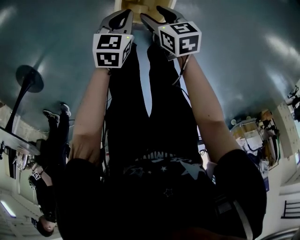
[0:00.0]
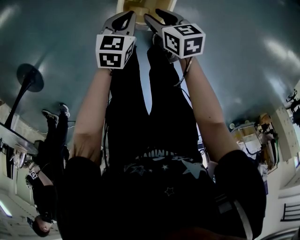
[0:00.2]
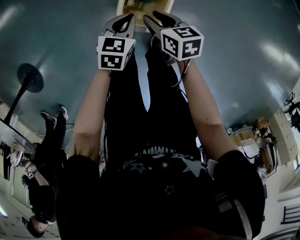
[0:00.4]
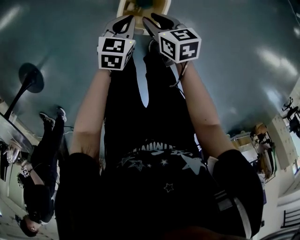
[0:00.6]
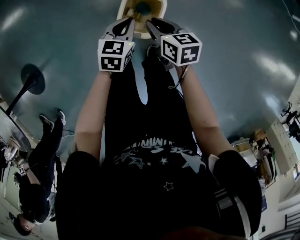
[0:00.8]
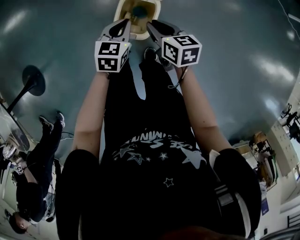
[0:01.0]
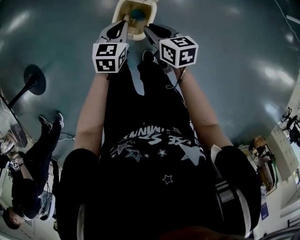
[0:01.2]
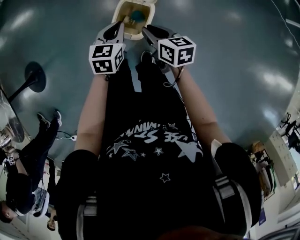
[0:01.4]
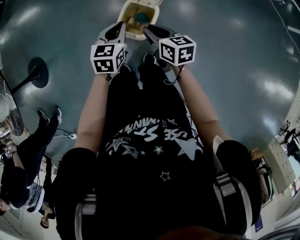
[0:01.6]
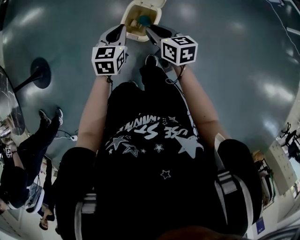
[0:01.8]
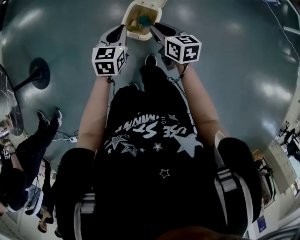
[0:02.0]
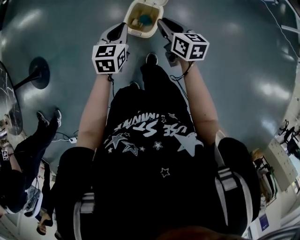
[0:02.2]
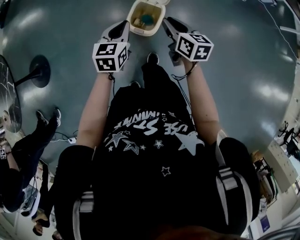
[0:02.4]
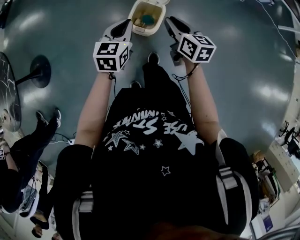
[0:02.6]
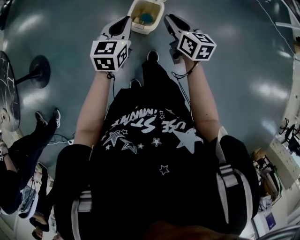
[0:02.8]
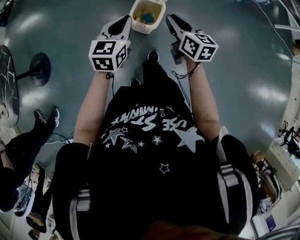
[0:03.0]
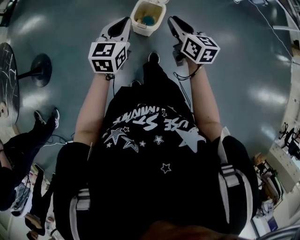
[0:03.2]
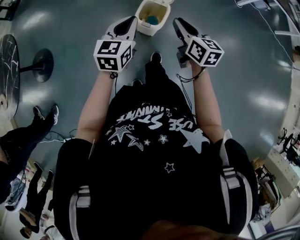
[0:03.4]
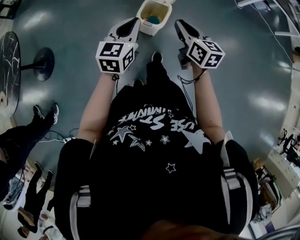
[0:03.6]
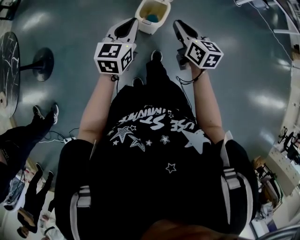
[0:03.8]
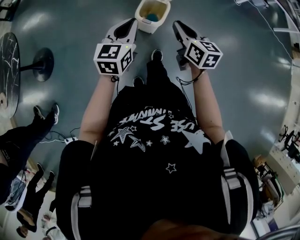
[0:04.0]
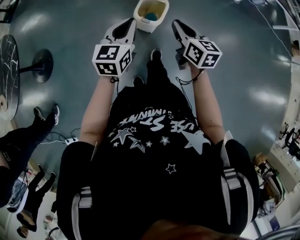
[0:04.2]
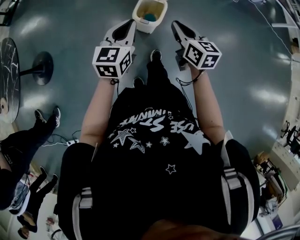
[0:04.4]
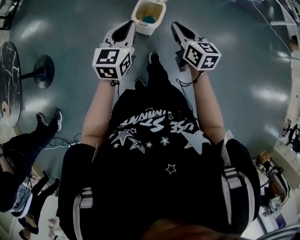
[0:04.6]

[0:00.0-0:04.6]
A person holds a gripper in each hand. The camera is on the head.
0:00.0 to 0:01.6: Both grippers move upward, about 20 cm. The right gripper closes its fingers. Meanwhile the left gripper swivels some 20 degrees.
0:01.6 to 0:03.0: The right gripper shifts about 15 cm upward and backward. The left gripper shifts approximately 20 cm backward, upward and to the left.
0:03.0 to 0:04.6: Both grippers travel together backward, about 10 cm.

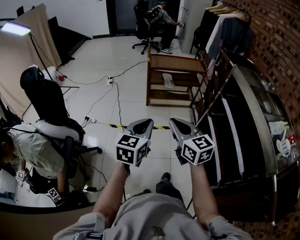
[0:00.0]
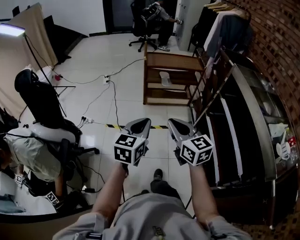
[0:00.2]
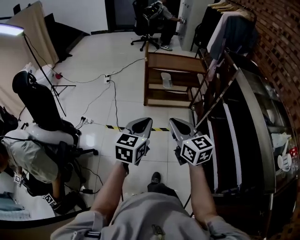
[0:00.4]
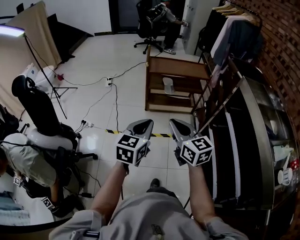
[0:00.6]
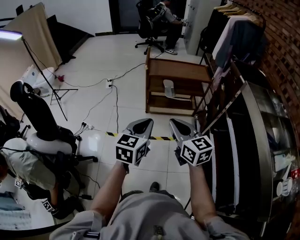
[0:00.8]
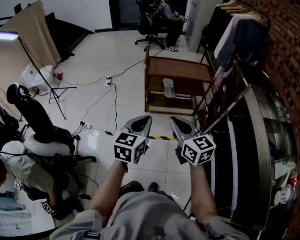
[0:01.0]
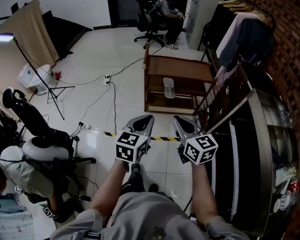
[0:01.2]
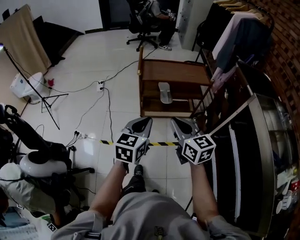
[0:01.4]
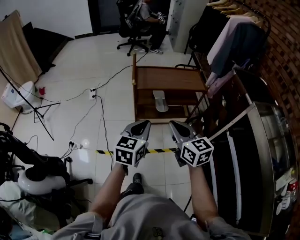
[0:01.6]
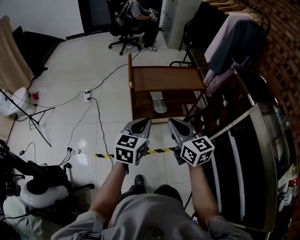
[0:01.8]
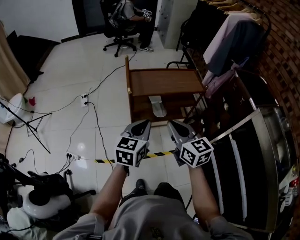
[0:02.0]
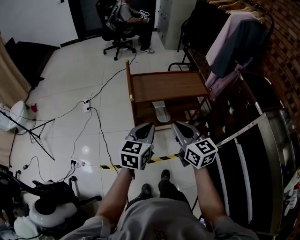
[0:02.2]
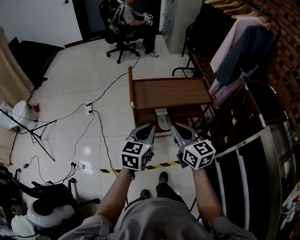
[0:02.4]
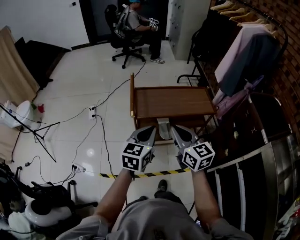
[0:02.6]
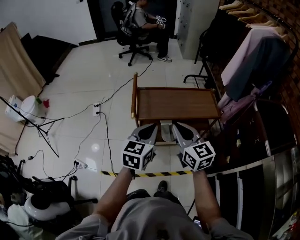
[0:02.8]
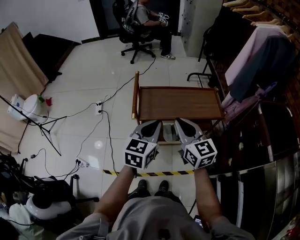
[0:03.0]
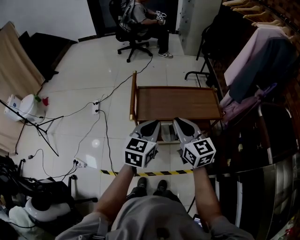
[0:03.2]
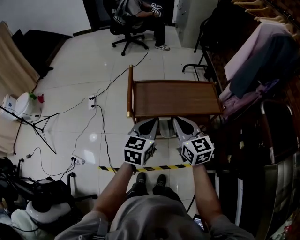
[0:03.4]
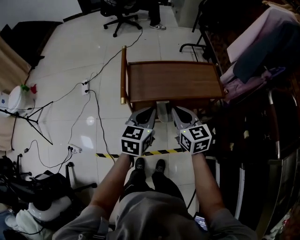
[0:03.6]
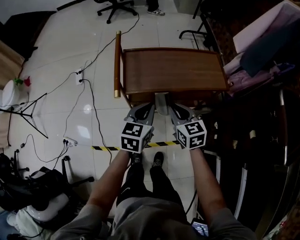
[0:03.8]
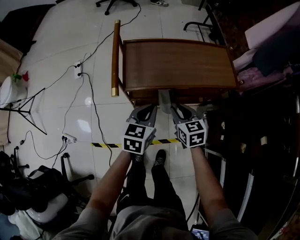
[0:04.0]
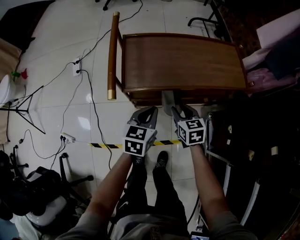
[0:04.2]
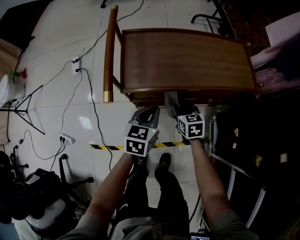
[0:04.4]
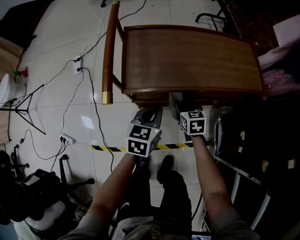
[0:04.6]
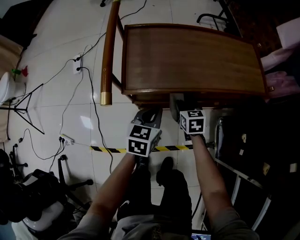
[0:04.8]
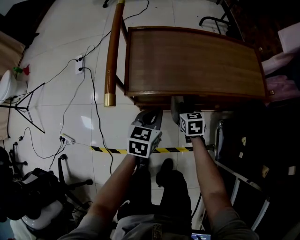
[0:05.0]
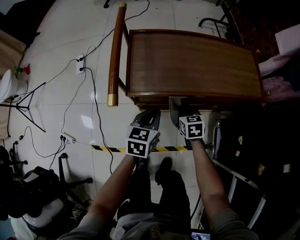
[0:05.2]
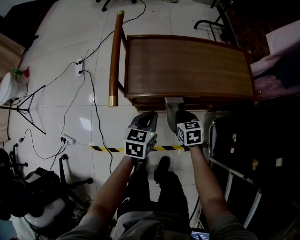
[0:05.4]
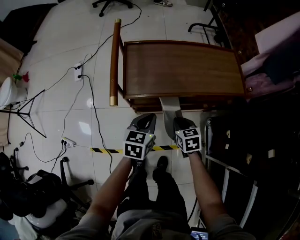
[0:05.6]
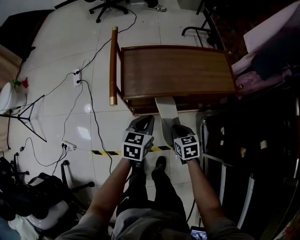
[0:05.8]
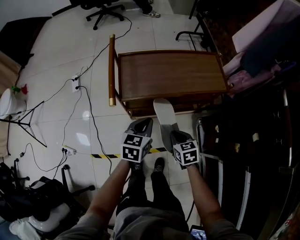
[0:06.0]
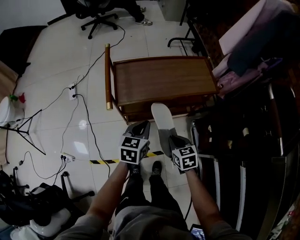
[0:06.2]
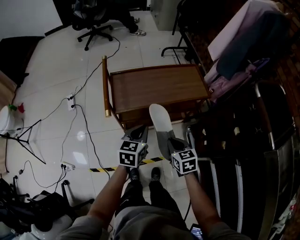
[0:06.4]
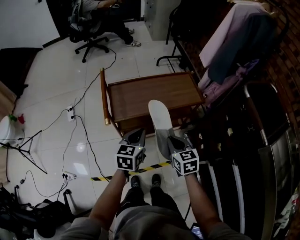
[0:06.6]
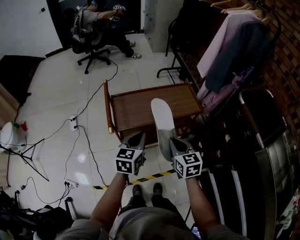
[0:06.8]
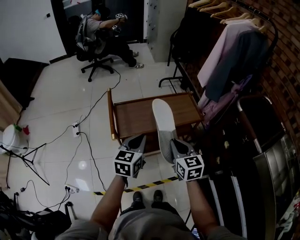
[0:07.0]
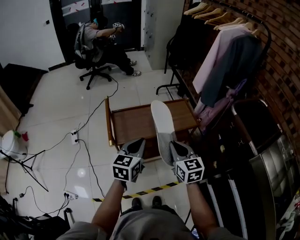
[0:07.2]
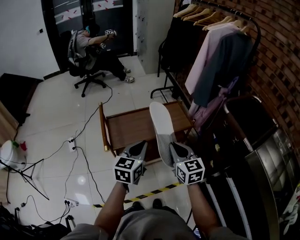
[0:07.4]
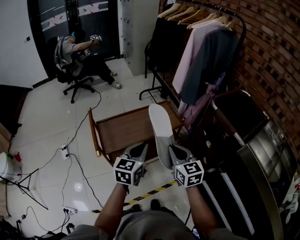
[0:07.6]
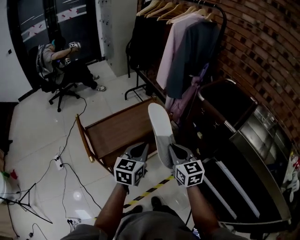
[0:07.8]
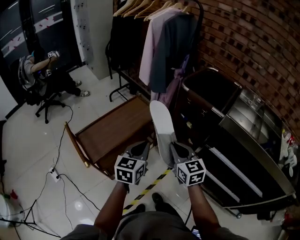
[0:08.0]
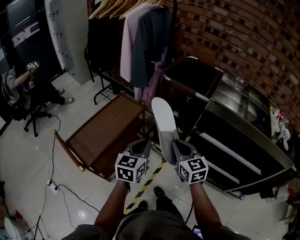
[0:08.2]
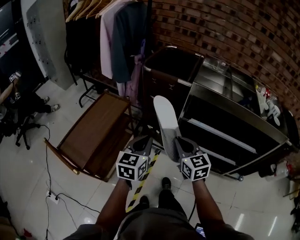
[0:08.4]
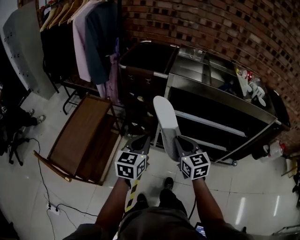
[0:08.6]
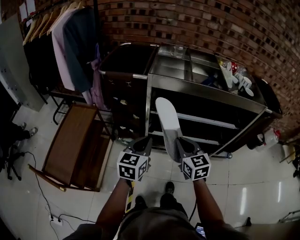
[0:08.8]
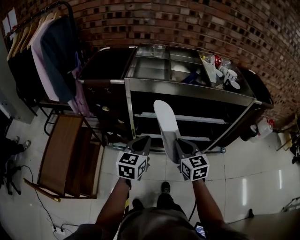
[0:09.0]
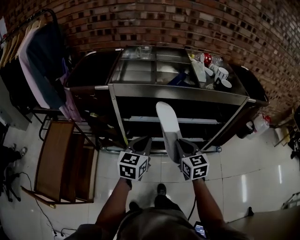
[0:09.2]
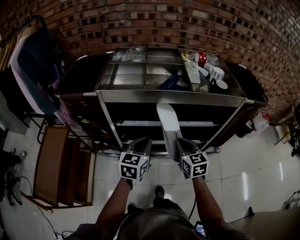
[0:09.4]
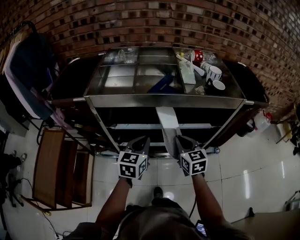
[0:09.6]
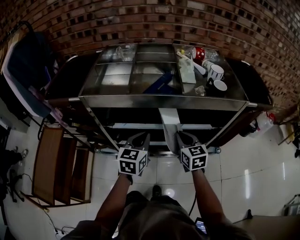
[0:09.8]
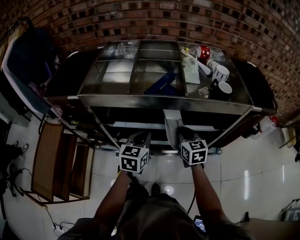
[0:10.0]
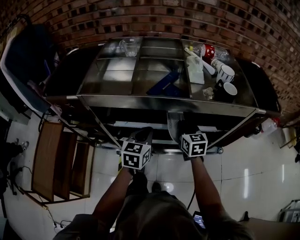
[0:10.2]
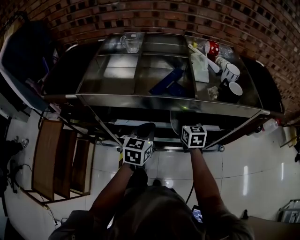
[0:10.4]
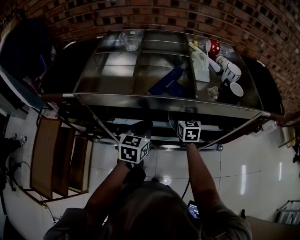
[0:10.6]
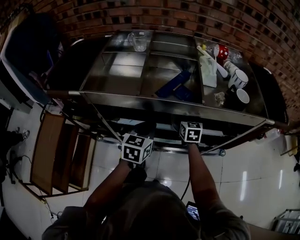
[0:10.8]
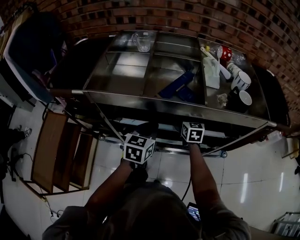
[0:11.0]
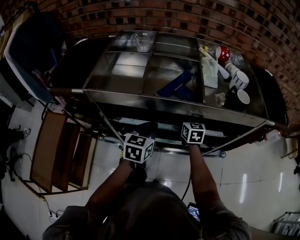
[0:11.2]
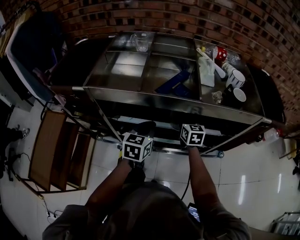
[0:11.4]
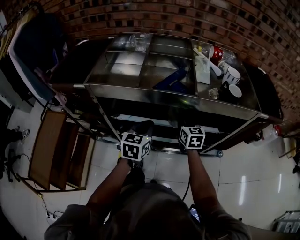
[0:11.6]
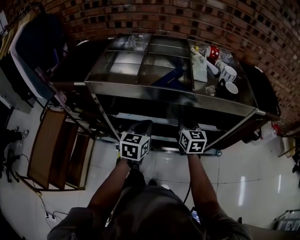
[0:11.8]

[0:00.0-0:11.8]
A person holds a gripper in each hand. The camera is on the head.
0:00.0 to 0:01.4: The grippers both shift forward by roughly 35 cm.
0:01.4 to 0:03.0: Both grippers move forward, roughly 35 cm.
0:03.0 to 0:04.4: Both grippers travel together downward, about 40 cm. The left gripper turns by roughly 20 degrees. The right gripper angles its fingers downward, by about 40 degrees, and opens up.
0:04.4 to 0:06.0: The right gripper travels backward and upward by about 20 cm, and closes up; the left gripper heads upward and backward, covering approximately 15 cm.
0:06.0 to 0:07.4: Both grippers travel together upward, approximately 25 cm. The right gripper tilts its fingers some 30 degrees upward, while the left gripper rotates about 20 degrees.
0:07.4 to 0:08.8: The left gripper changes place by some 35 cm, and turns by about 60 degrees. Meanwhile the right gripper changes place by approximately 40 cm, and swivels some 60 degrees.
0:08.8 to 0:10.4: The two grippers go some 35 cm forward and to the right.
0:10.4 to 0:11.8: The right gripper travels backward by approximately 5 cm.

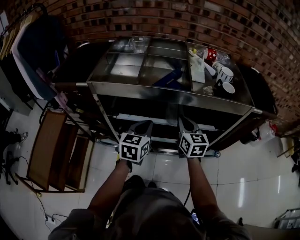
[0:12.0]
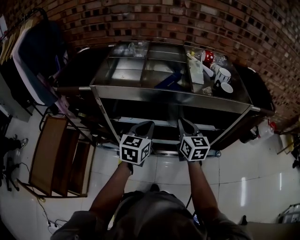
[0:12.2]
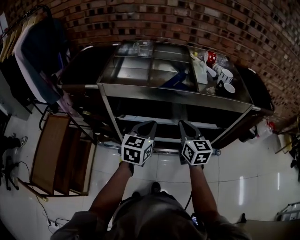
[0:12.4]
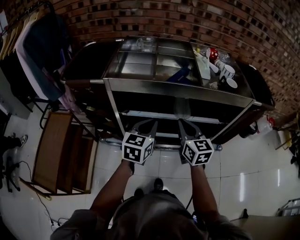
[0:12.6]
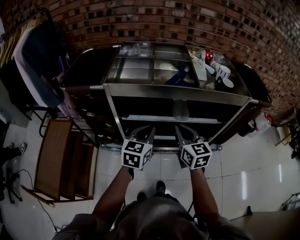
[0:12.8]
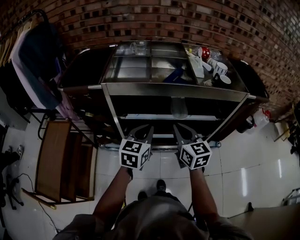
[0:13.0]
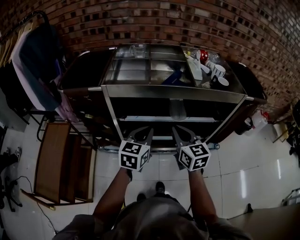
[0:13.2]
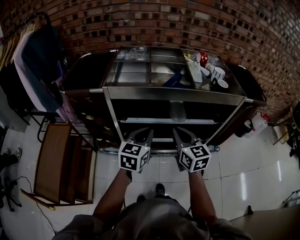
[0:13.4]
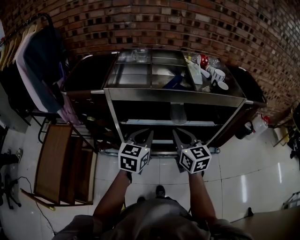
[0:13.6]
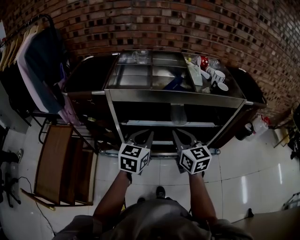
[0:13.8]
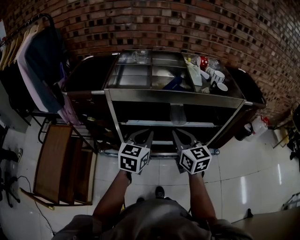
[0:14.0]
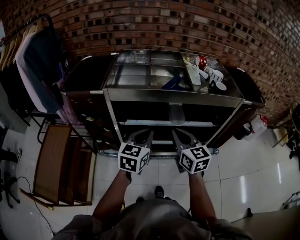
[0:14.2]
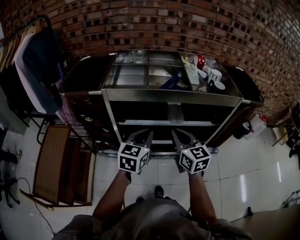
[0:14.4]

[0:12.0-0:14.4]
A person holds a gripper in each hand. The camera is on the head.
0:12.0 to 0:13.2: The right gripper shifts some 15 cm backward, to the left and upward, while the left gripper shifts approximately 10 cm backward and to the left.
0:13.2 to 0:14.4: There are only small adjustments of the grippers.

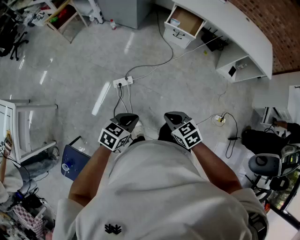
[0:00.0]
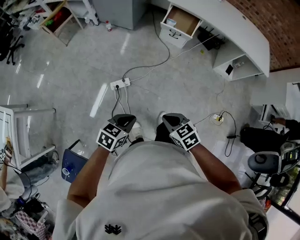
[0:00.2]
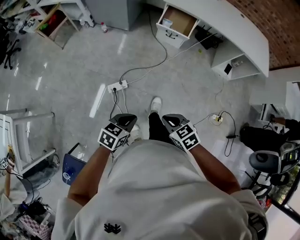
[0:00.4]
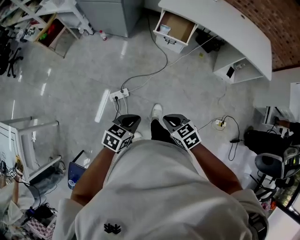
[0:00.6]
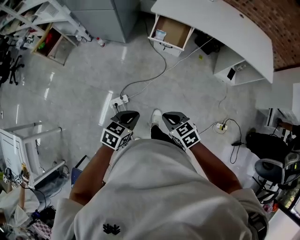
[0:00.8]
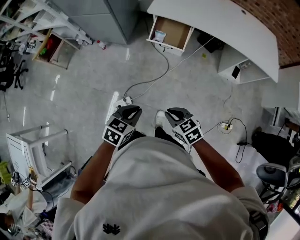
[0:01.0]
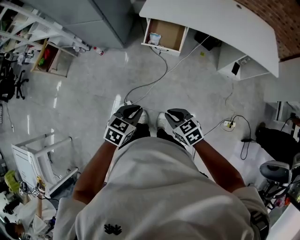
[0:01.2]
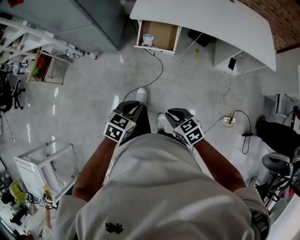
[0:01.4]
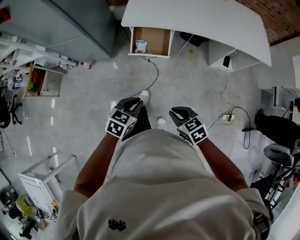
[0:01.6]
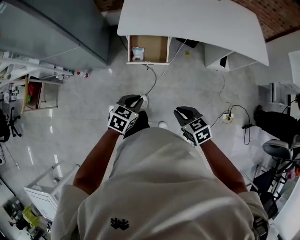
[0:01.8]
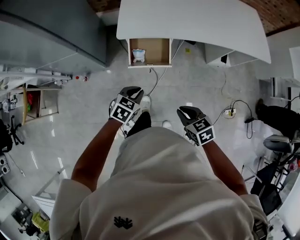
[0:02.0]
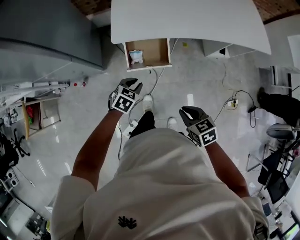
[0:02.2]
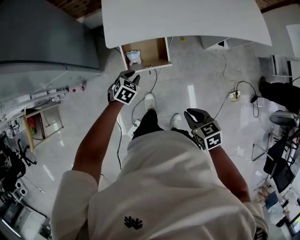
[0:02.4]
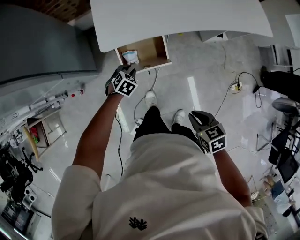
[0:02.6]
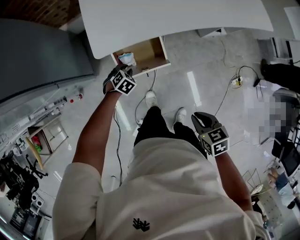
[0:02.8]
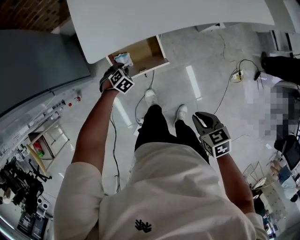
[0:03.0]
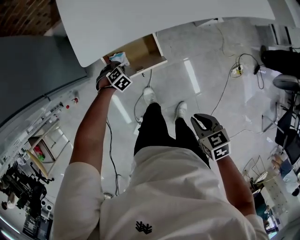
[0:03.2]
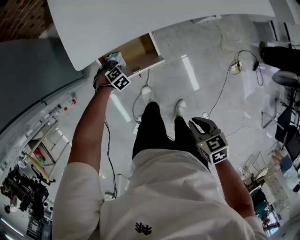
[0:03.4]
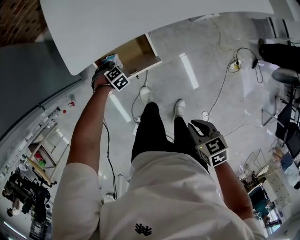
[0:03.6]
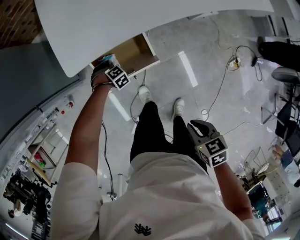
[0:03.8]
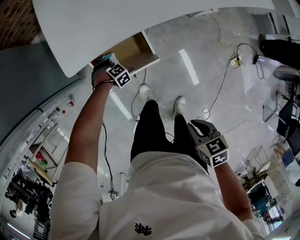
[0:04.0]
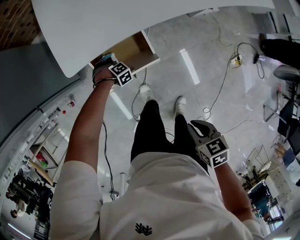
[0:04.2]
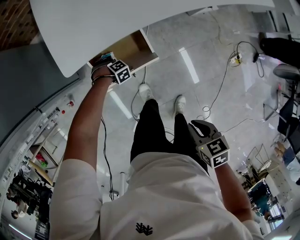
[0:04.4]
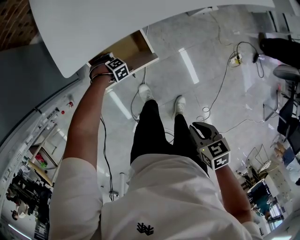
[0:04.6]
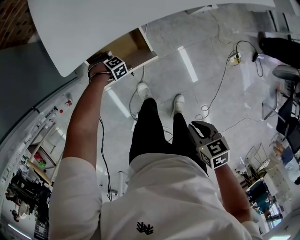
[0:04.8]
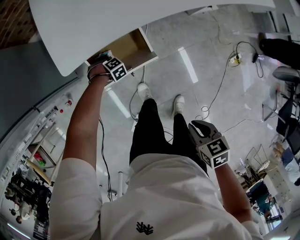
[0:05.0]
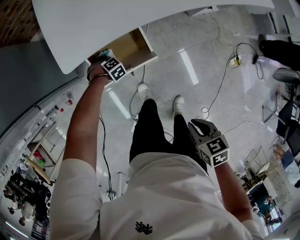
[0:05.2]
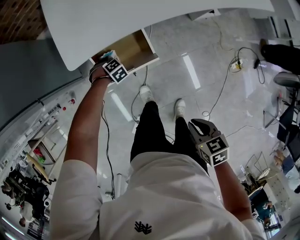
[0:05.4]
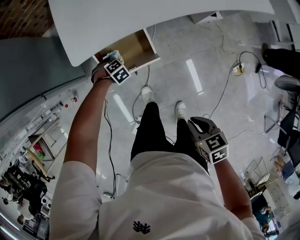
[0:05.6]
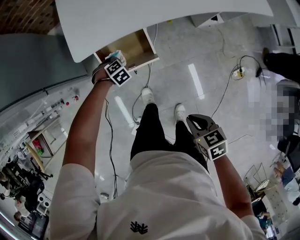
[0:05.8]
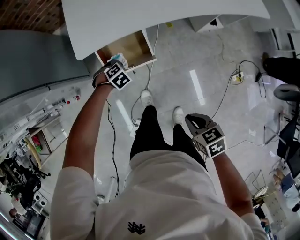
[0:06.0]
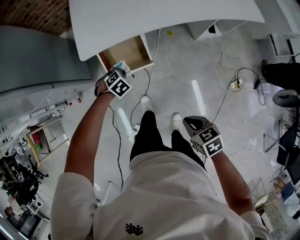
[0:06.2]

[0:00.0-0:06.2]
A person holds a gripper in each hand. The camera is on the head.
0:00.0 to 0:01.6: The two grippers travel together, forward and to the right, some 50 cm. The right gripper swivels some 20 degrees.
0:01.6 to 0:03.2: The right gripper ends up approximately 30 cm from where it was, and changes its angle by approximately 40 degrees, while the left gripper changes place by some 70 cm, and rotates around the line of its fingers by approximately 50 degrees, clockwise from behind.
0:03.2 to 0:04.6: The left gripper heads downward, covering approximately 10 cm, and rotates roughly 30 degrees.
0:04.6 to 0:06.2: The right gripper ends up roughly 15 cm from where it was. The left gripper is displaced upward by some 25 cm, changes its angle by roughly 30 degrees, and closes its fingers.
